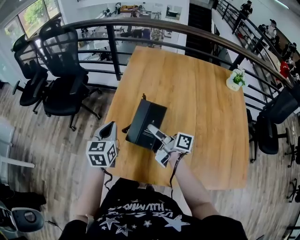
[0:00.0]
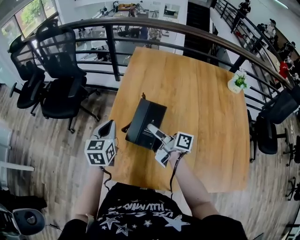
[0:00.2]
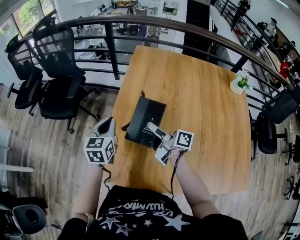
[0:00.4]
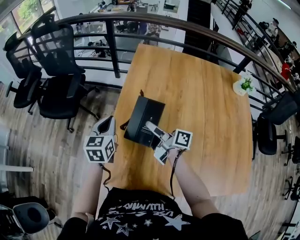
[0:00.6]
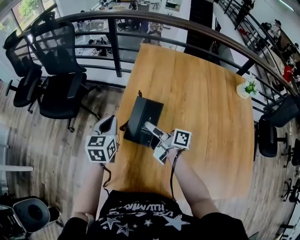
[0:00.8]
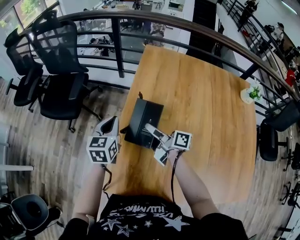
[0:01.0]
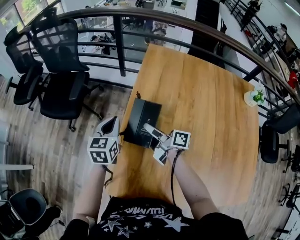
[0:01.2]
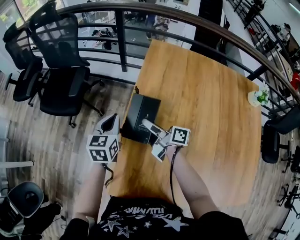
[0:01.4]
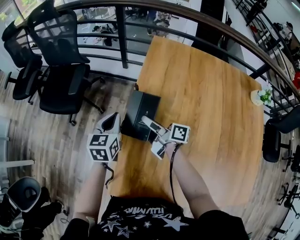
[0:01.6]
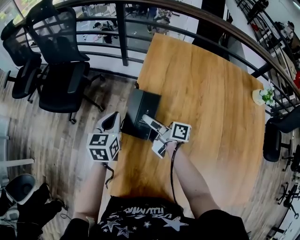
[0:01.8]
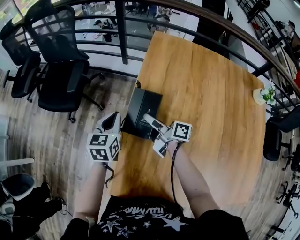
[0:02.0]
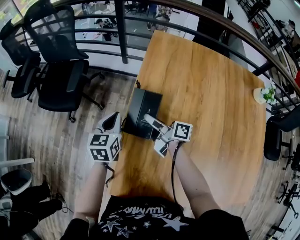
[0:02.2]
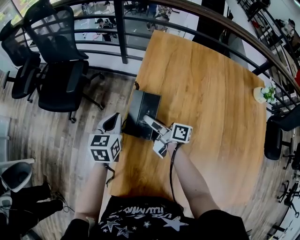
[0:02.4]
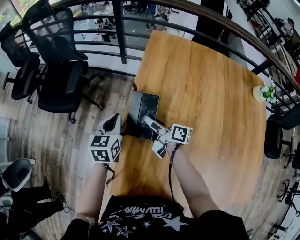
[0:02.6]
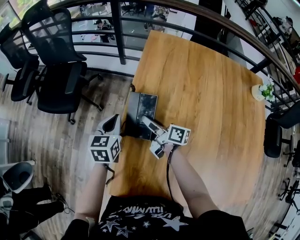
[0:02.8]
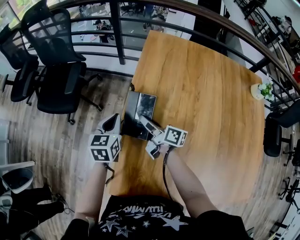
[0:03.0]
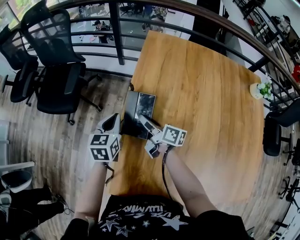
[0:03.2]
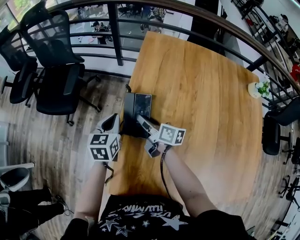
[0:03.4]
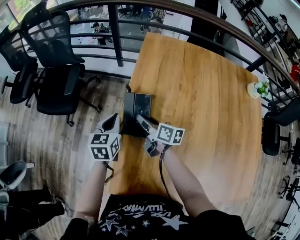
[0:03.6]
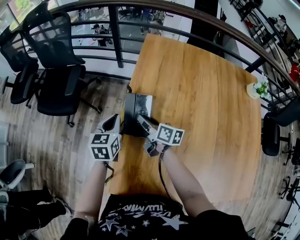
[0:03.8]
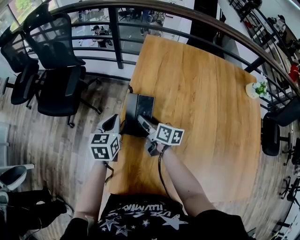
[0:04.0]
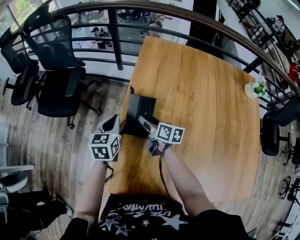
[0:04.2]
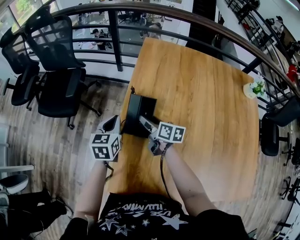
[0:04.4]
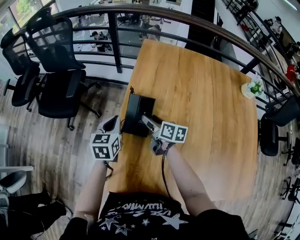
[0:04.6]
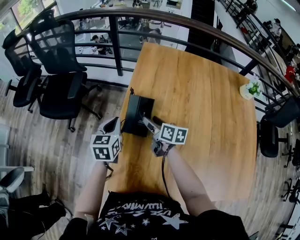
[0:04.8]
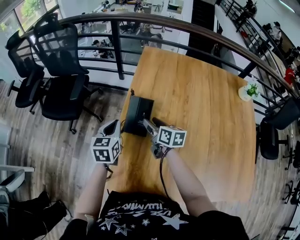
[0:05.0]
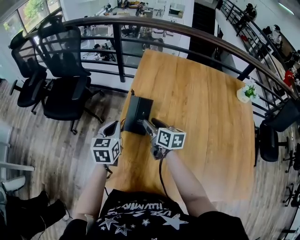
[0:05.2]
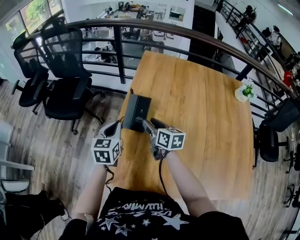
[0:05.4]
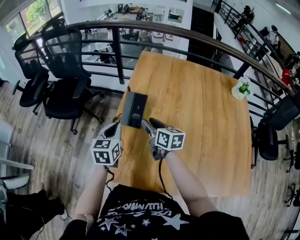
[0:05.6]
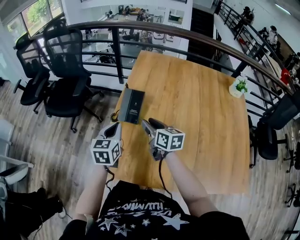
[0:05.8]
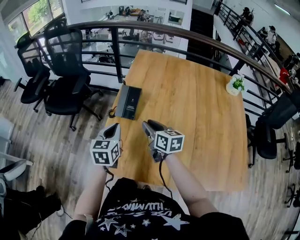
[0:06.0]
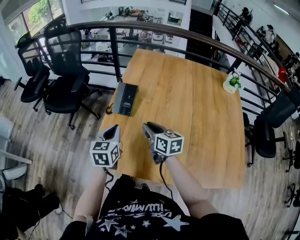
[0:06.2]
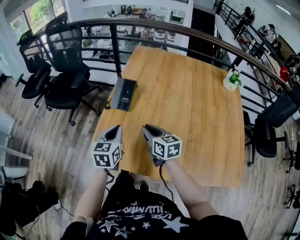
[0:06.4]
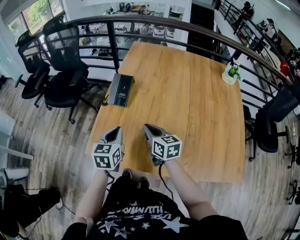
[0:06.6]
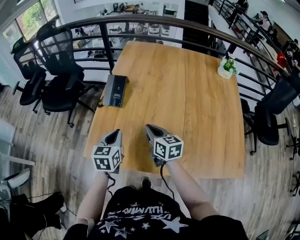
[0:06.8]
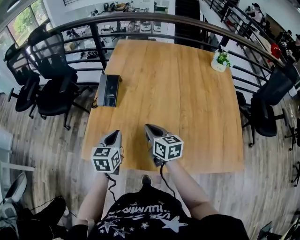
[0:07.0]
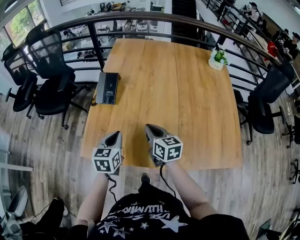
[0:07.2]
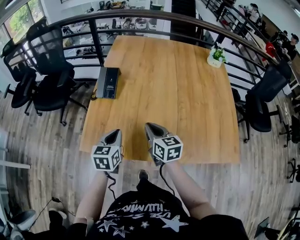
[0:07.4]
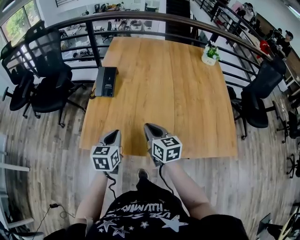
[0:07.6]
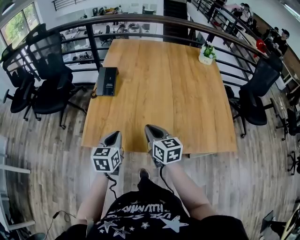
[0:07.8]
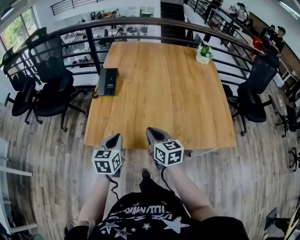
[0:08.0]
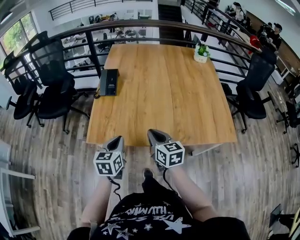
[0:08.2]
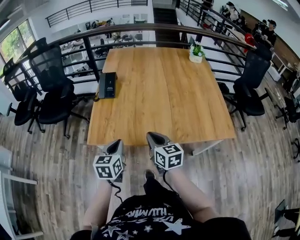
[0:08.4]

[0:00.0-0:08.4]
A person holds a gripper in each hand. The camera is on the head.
0:00.0 to 0:01.4: The left gripper goes roughly 20 cm forward; the right gripper shifts roughly 20 cm forward and to the left.
0:01.4 to 0:02.8: There are only small adjustments of the grippers.
0:02.8 to 0:04.2: The right gripper rotates about 20 degrees, and opens its fingers.
0:04.2 to 0:05.6: The right gripper travels upward and backward by some 15 cm, and closes its fingers; the left gripper goes some 15 cm backward and upward.
0:05.6 to 0:07.0: Both grippers move backward and to the right, roughly 20 cm. The right gripper closes its fingers.
0:07.0 to 0:08.4: Both grippers move backward, roughly 20 cm.

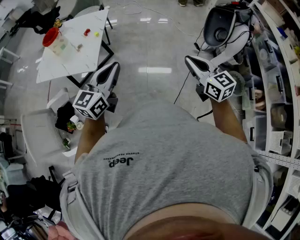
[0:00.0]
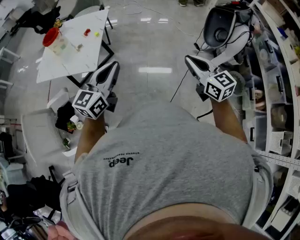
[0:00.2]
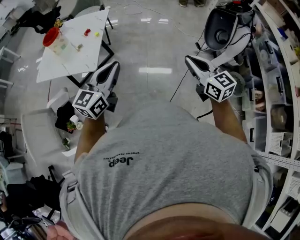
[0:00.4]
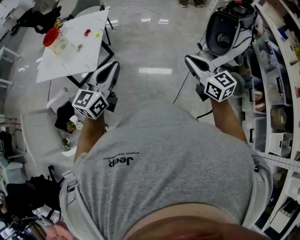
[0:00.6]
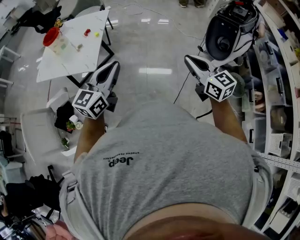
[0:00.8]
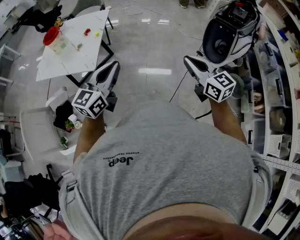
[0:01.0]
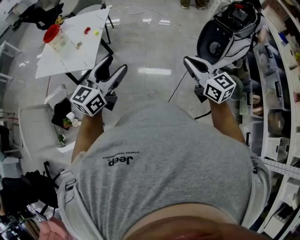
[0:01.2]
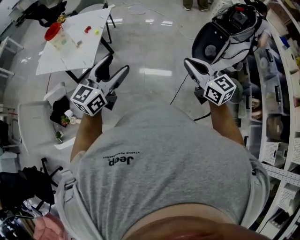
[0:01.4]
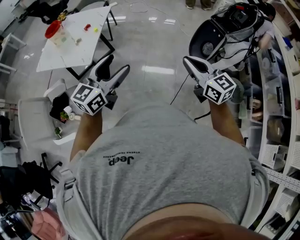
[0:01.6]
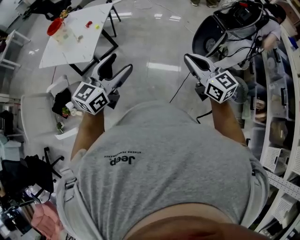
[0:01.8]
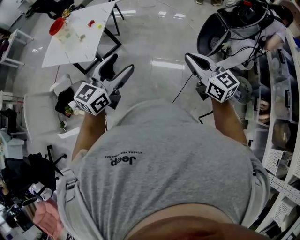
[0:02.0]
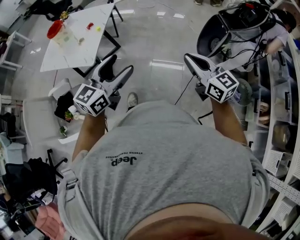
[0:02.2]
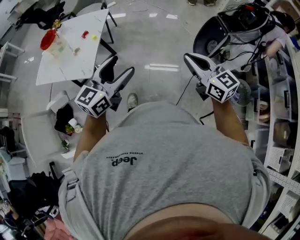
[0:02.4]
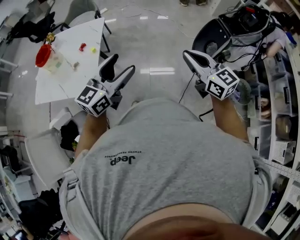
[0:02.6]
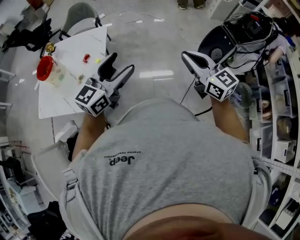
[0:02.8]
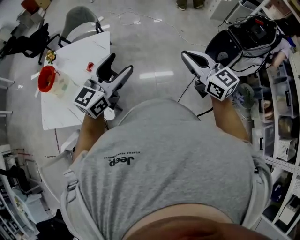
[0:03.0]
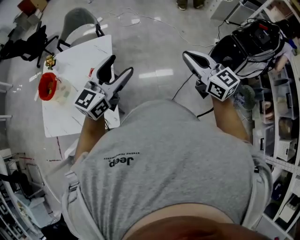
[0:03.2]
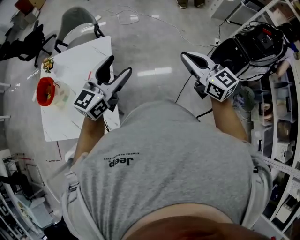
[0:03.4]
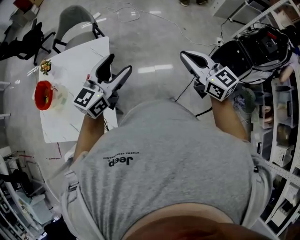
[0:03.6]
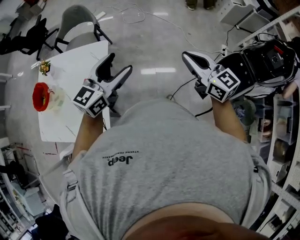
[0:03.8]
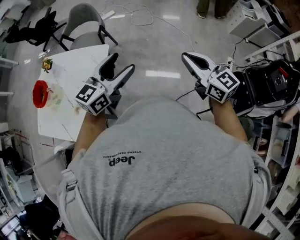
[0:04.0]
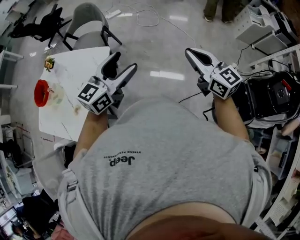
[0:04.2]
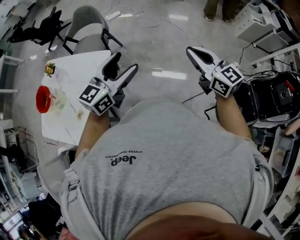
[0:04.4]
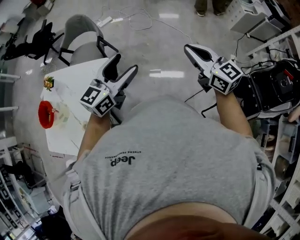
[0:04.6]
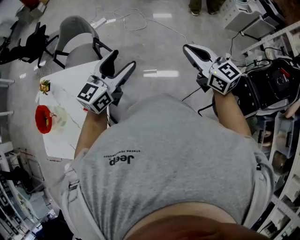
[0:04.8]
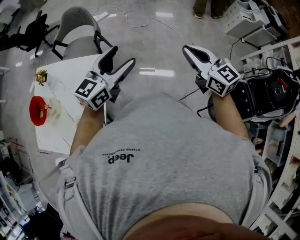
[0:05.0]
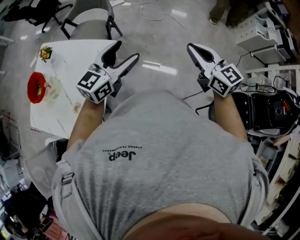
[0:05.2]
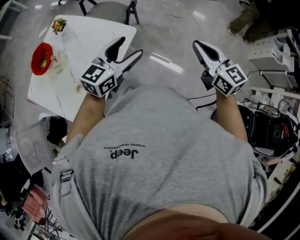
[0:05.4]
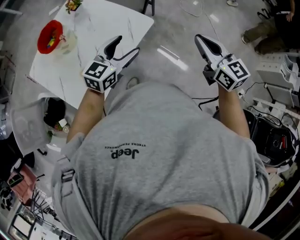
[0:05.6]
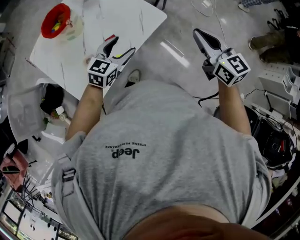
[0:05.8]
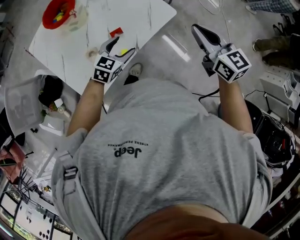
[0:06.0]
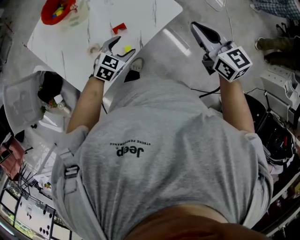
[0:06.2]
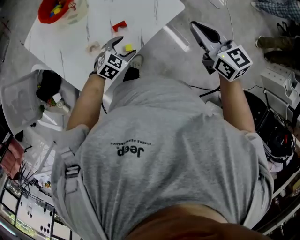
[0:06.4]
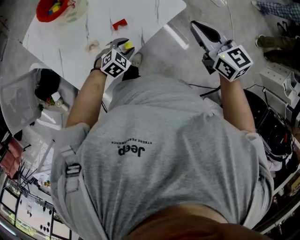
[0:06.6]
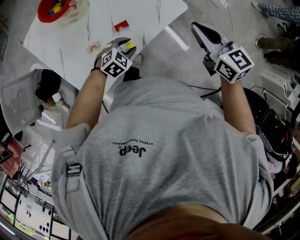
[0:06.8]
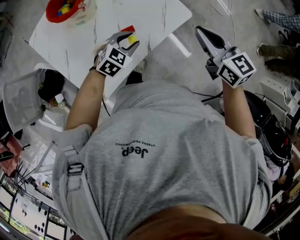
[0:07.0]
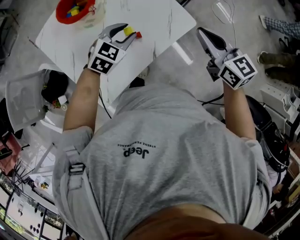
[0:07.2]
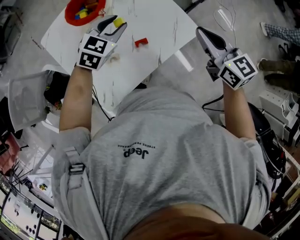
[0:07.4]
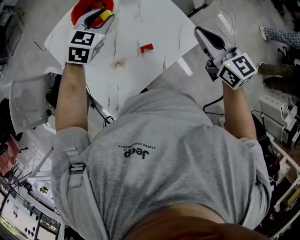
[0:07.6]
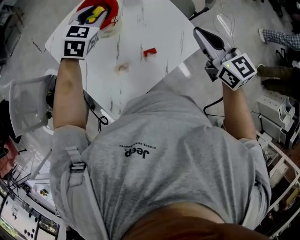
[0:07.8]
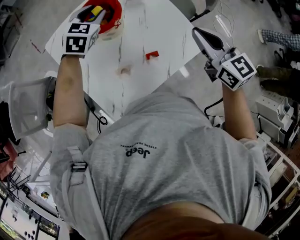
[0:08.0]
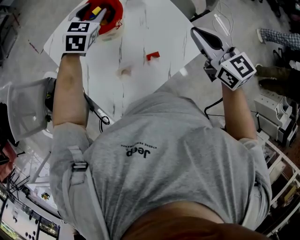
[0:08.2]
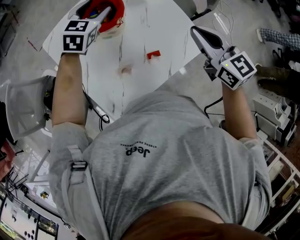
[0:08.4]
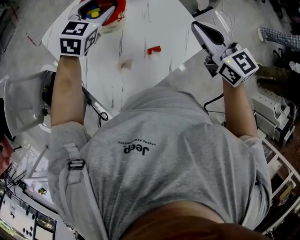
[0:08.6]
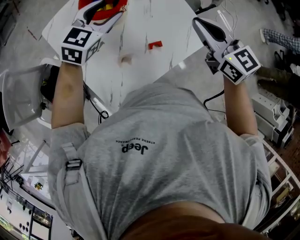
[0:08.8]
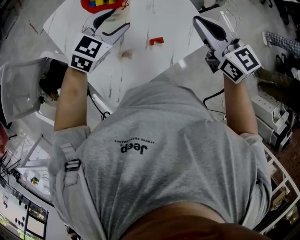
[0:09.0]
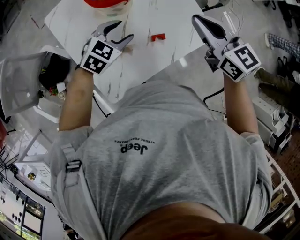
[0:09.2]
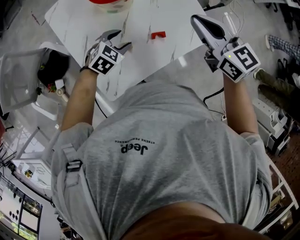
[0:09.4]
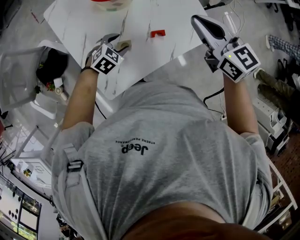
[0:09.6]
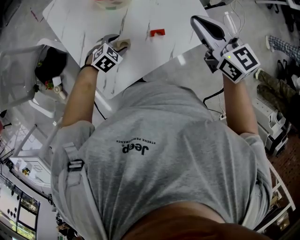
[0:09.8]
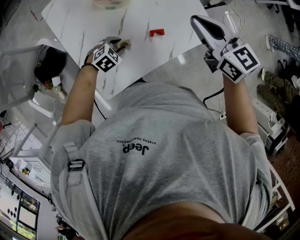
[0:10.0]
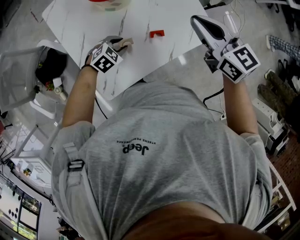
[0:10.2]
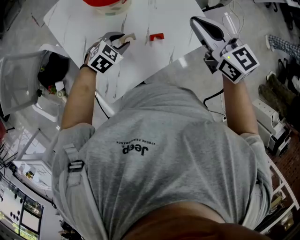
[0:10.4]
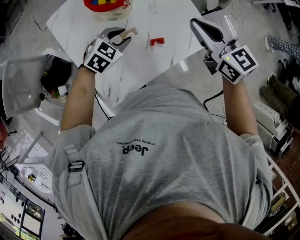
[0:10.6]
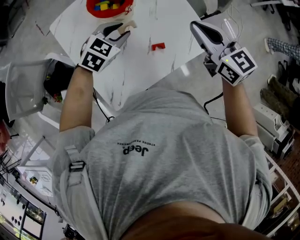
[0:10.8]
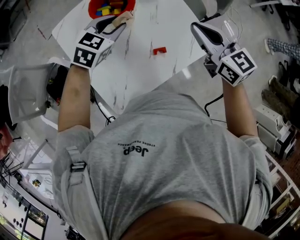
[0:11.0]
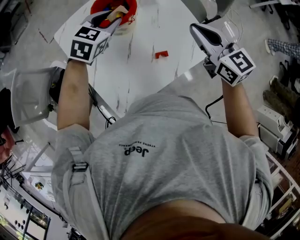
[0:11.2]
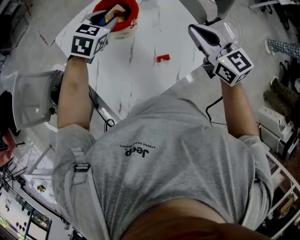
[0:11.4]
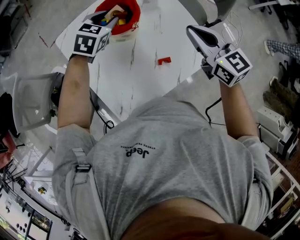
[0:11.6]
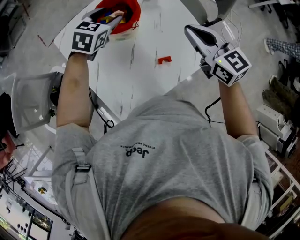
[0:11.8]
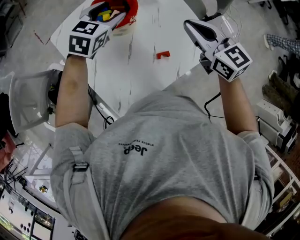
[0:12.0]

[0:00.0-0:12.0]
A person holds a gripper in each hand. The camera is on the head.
0:00.0 to 0:01.6: Both grippers travel together to the right, approximately 10 cm. The left gripper opens up.
0:01.6 to 0:03.0: The grippers both shift forward and to the left by some 40 cm.
0:03.0 to 0:04.4: Both grippers move forward, roughly 35 cm.
0:04.4 to 0:06.0: The left gripper changes place by about 40 cm, and angles its fingers downward, by approximately 30 degrees, while the right gripper changes place by roughly 40 cm, and rotates about 40 degrees.
0:06.0 to 0:07.6: The left gripper is displaced to the left, forward and upward by about 30 cm, turns by approximately 20 degrees, and closes, while the right gripper goes roughly 20 cm to the left and forward.
0:07.6 to 0:09.0: The right gripper moves to the left, approximately 10 cm. The left gripper is displaced backward by approximately 5 cm.
0:09.0 to 0:10.4: The left gripper moves downward and backward, roughly 15 cm, and rotates about 20 degrees.
0:10.4 to 0:12.0: The left gripper is displaced forward and upward by roughly 25 cm, and changes its angle by about 20 degrees. The right gripper heads forward, covering roughly 5 cm.

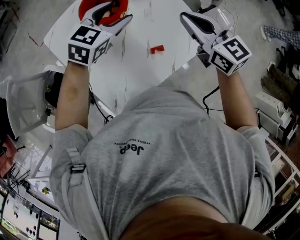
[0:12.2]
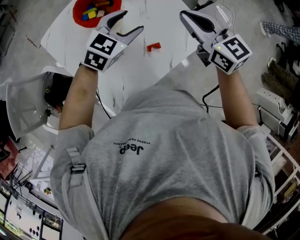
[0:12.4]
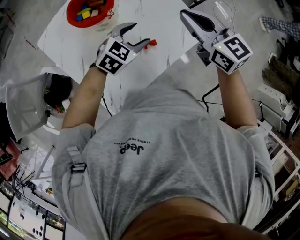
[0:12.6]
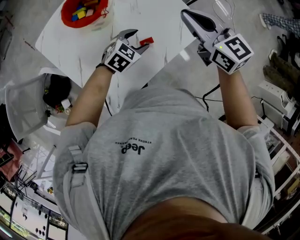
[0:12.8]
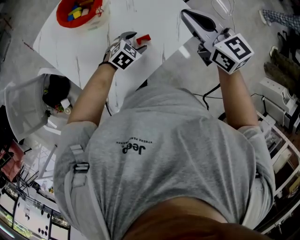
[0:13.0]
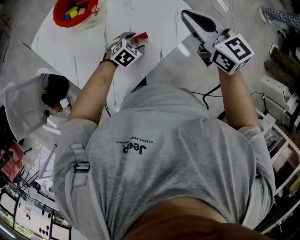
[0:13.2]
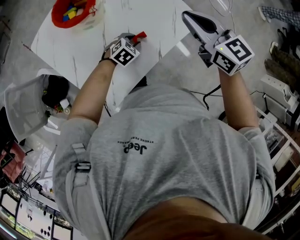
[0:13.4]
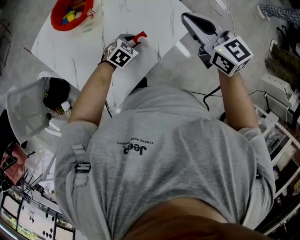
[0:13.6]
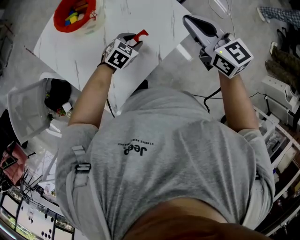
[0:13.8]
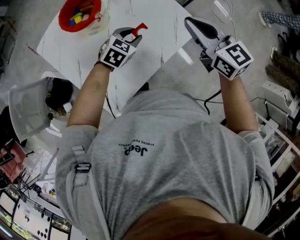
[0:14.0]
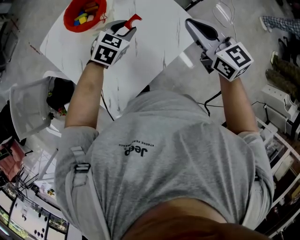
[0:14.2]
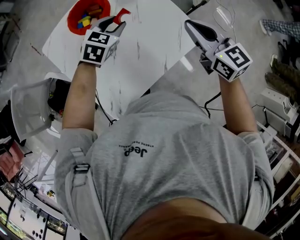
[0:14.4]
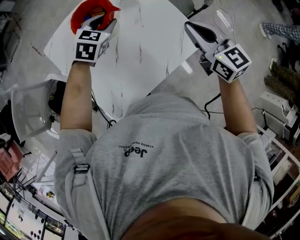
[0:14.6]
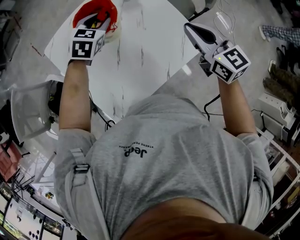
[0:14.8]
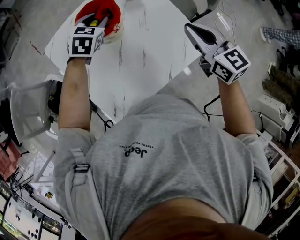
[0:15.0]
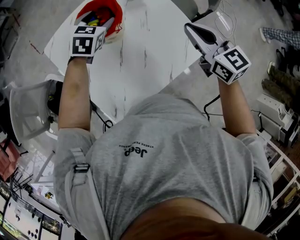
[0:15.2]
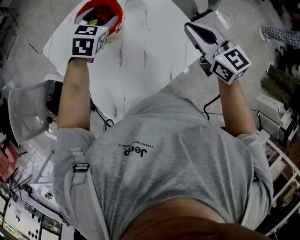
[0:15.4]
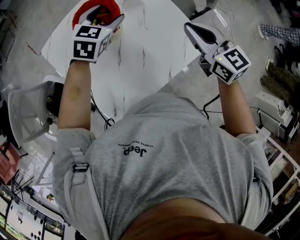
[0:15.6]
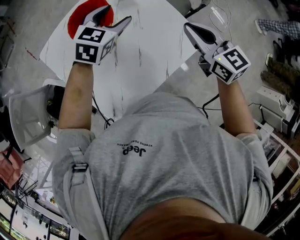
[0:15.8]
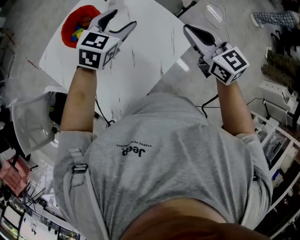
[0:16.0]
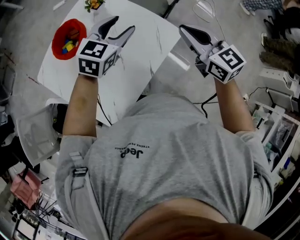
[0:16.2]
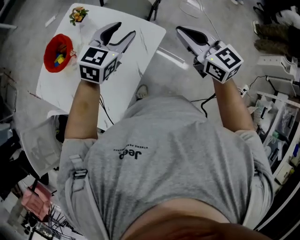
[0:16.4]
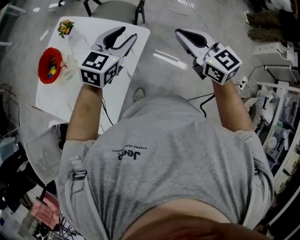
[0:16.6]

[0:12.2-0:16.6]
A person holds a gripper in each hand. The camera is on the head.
0:12.2 to 0:13.6: The right gripper is displaced to the right by some 10 cm; the left gripper moves downward, to the right and backward, some 30 cm, and turns by some 30 degrees.
0:13.6 to 0:15.2: The right gripper shifts approximately 10 cm forward and to the left, while the left gripper heads forward, to the left and upward, covering some 35 cm, changes its angle by approximately 30 degrees, and opens.
0:15.2 to 0:16.6: The right gripper changes place by some 35 cm, and swivels approximately 20 degrees; the left gripper changes place by roughly 50 cm, and turns by some 40 degrees.
